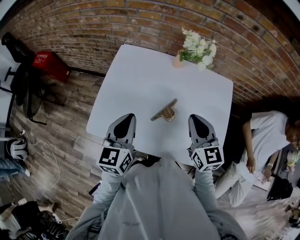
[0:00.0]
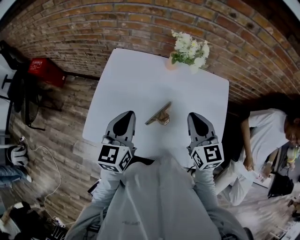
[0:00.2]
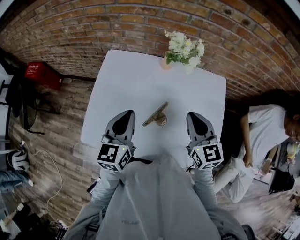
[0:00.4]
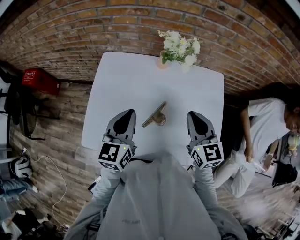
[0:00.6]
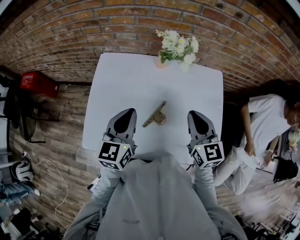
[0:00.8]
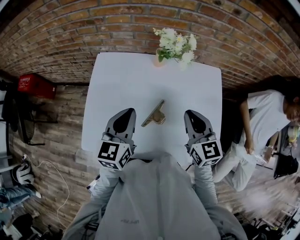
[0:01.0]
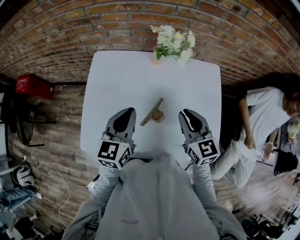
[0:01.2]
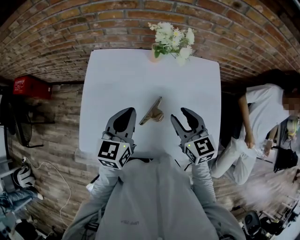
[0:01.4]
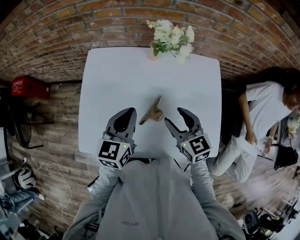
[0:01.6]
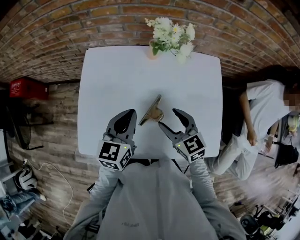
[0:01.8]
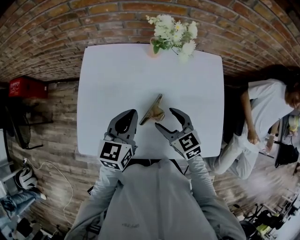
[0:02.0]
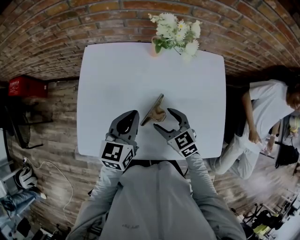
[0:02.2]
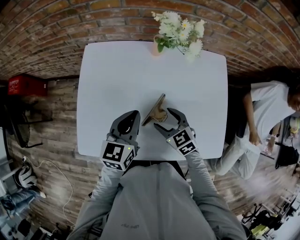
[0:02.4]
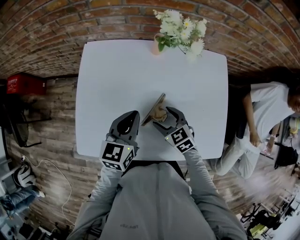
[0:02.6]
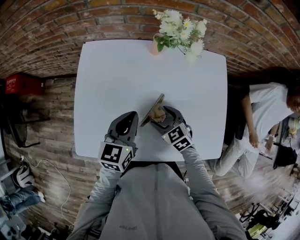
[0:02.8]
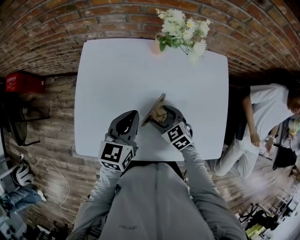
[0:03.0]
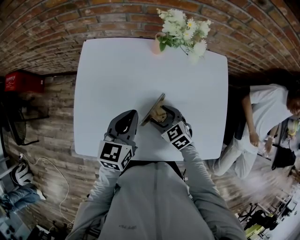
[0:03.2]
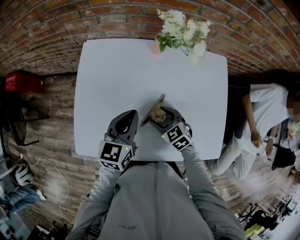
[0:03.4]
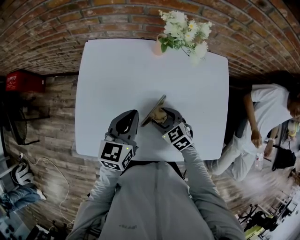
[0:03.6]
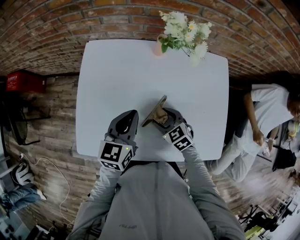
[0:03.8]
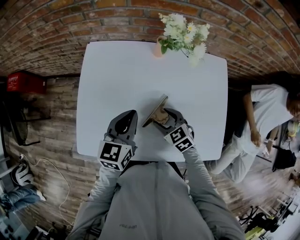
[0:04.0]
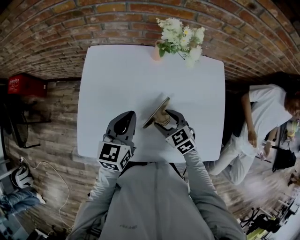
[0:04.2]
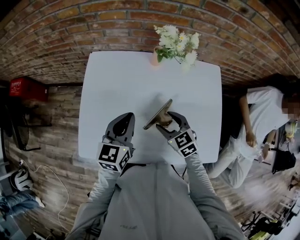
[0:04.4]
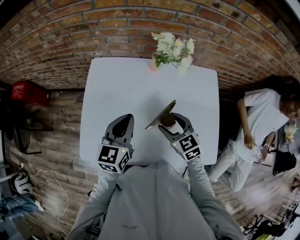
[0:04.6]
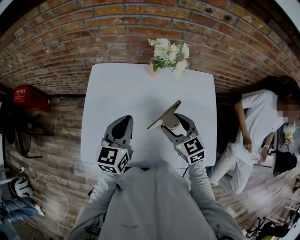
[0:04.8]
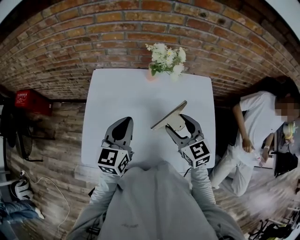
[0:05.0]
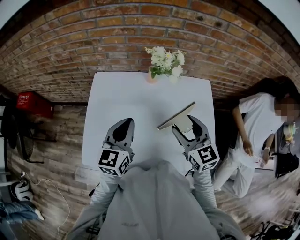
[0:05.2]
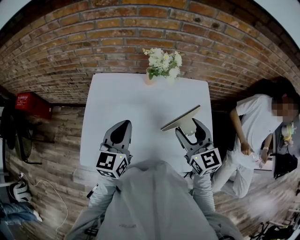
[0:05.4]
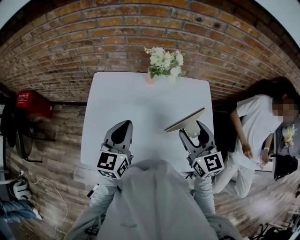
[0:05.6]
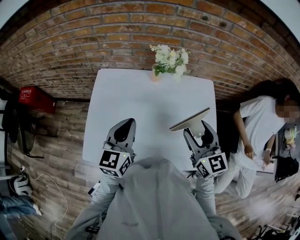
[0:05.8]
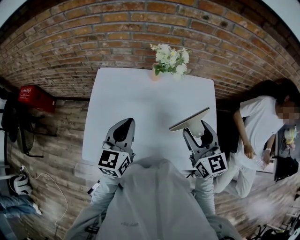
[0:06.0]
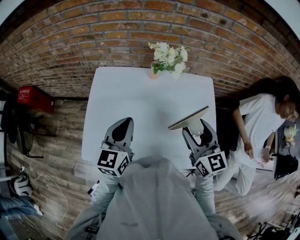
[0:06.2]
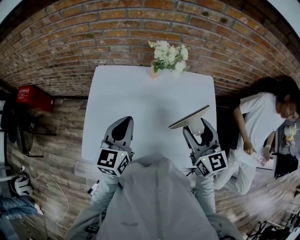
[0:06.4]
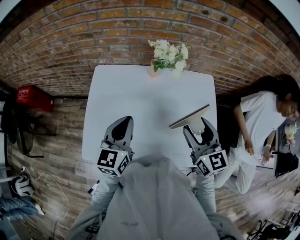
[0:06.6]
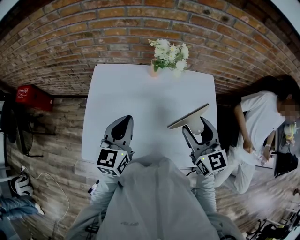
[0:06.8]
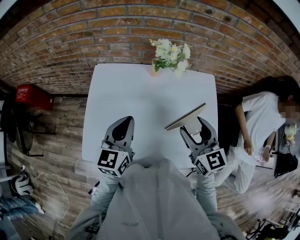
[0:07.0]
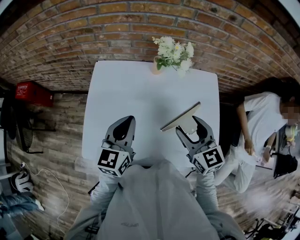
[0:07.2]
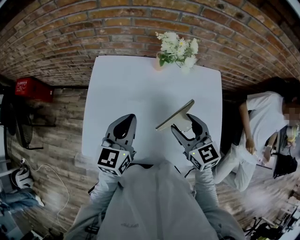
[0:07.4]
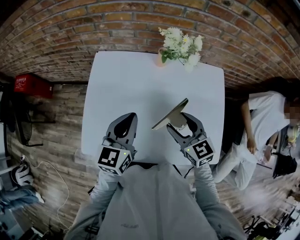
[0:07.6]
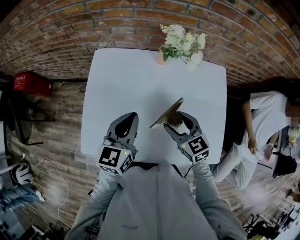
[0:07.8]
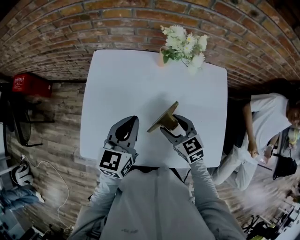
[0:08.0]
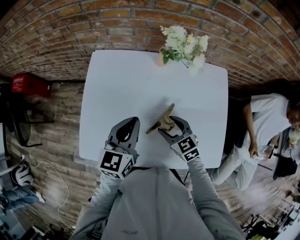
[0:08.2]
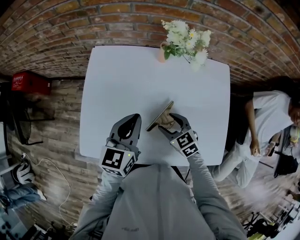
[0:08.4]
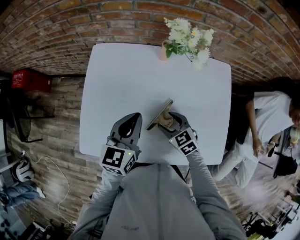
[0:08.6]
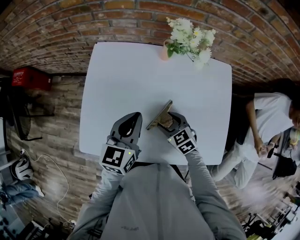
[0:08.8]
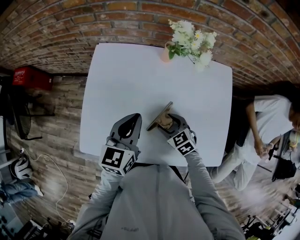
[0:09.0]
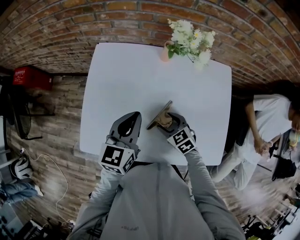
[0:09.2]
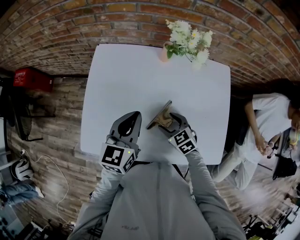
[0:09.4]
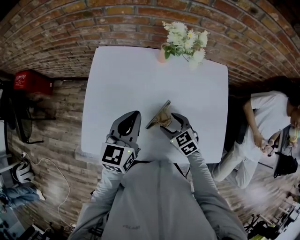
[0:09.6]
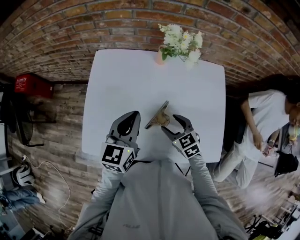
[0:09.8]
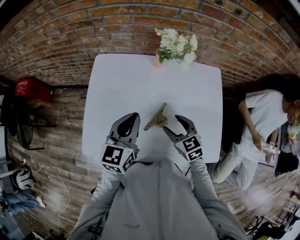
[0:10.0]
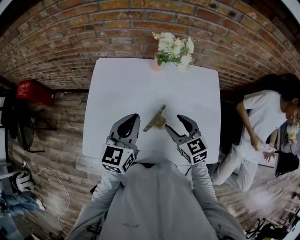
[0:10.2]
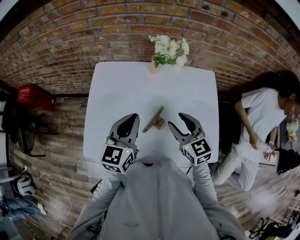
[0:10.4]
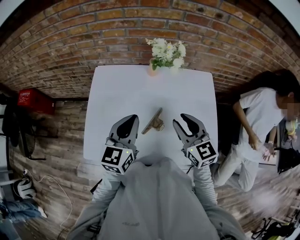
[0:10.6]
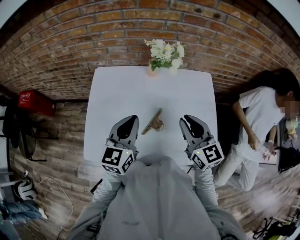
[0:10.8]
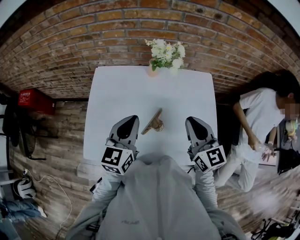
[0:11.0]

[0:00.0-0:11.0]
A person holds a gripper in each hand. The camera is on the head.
0:00.0 to 0:01.6: The right gripper is displaced downward by roughly 5 cm, and opens. The left gripper goes approximately 10 cm forward and to the right.
0:01.6 to 0:03.2: The left gripper goes approximately 5 cm downward; the right gripper is displaced downward by some 15 cm, and changes its angle by some 30 degrees.
0:03.2 to 0:04.8: The left gripper shifts approximately 10 cm upward, while the right gripper heads upward, covering approximately 15 cm, and swivels roughly 20 degrees.
0:04.8 to 0:06.2: The right gripper goes roughly 15 cm upward and to the right, and changes its angle by roughly 20 degrees.
0:06.2 to 0:07.8: The left gripper shifts by about 5 cm. The right gripper goes some 15 cm downward and to the left, and rotates roughly 30 degrees.
0:07.8 to 0:09.4: The right gripper travels downward by about 10 cm.
0:09.4 to 0:11.0: The left gripper goes roughly 5 cm upward, while the right gripper is displaced upward by approximately 25 cm, angles its fingers upward, by roughly 40 degrees, and closes up.

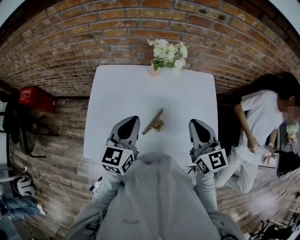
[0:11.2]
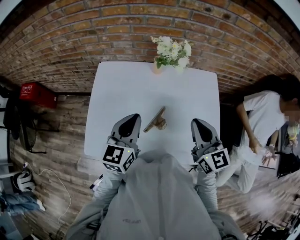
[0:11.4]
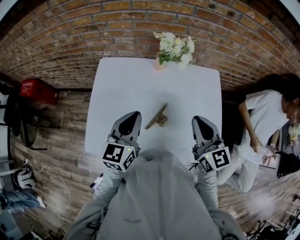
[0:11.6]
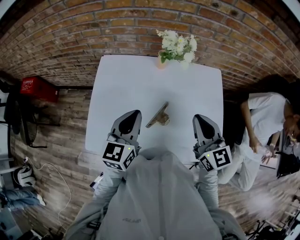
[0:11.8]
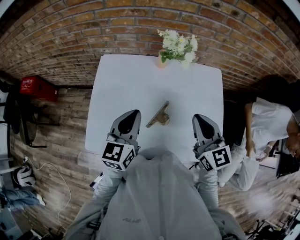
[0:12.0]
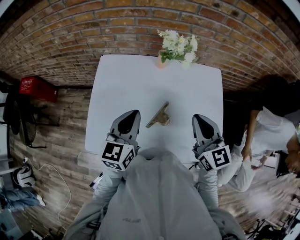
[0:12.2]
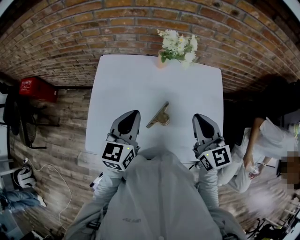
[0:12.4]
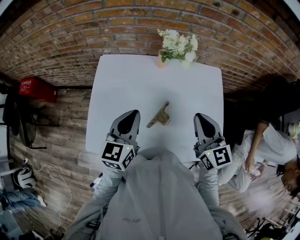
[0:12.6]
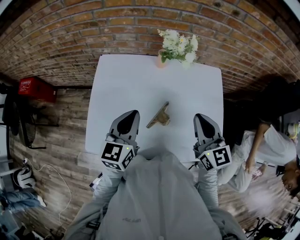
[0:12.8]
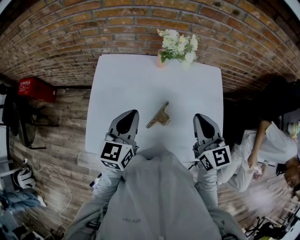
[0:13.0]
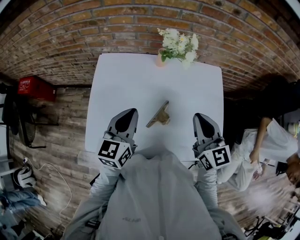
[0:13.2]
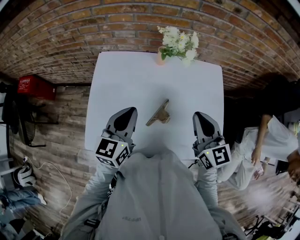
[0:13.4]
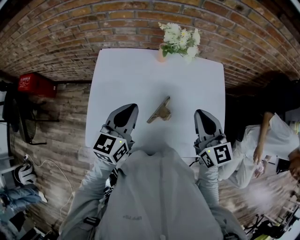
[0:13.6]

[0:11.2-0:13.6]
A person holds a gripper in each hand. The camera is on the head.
0:11.2 to 0:13.6: There are only small adjustments of the grippers.

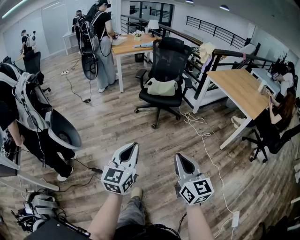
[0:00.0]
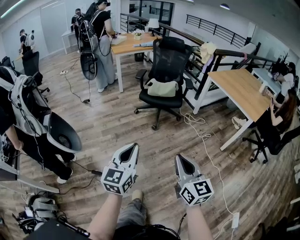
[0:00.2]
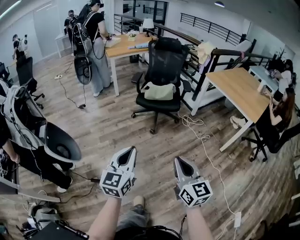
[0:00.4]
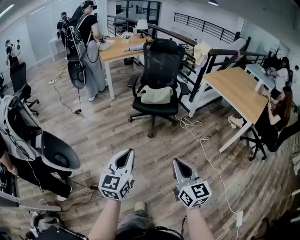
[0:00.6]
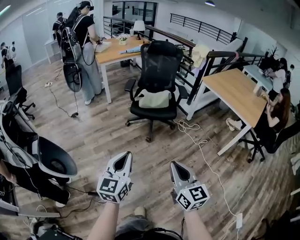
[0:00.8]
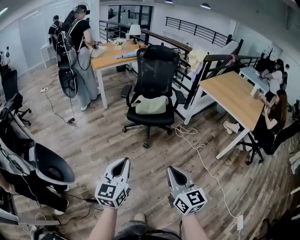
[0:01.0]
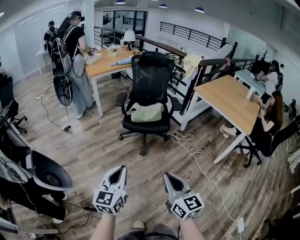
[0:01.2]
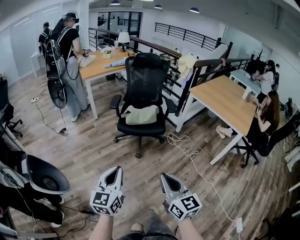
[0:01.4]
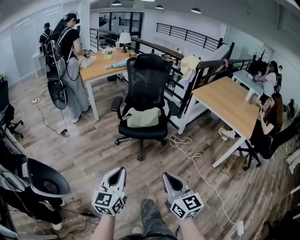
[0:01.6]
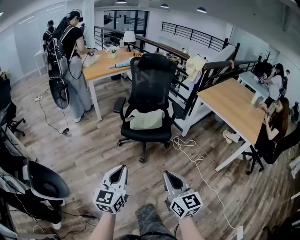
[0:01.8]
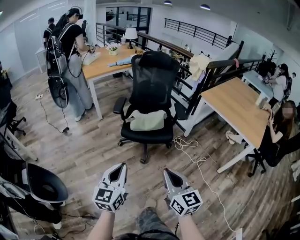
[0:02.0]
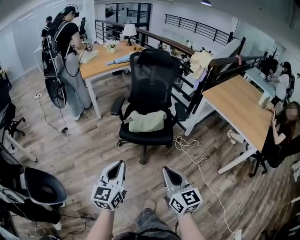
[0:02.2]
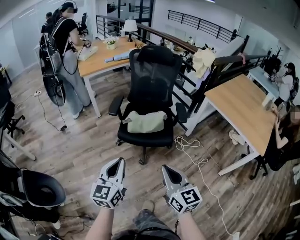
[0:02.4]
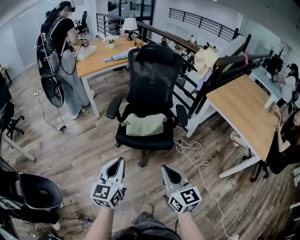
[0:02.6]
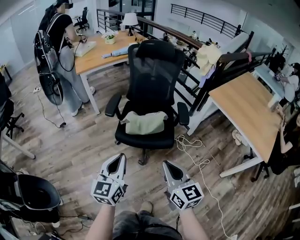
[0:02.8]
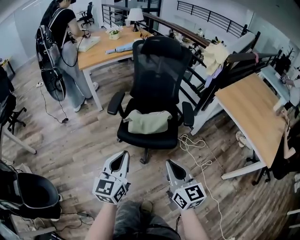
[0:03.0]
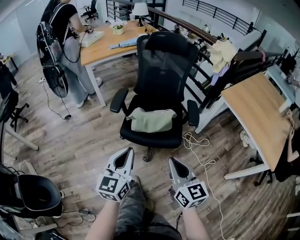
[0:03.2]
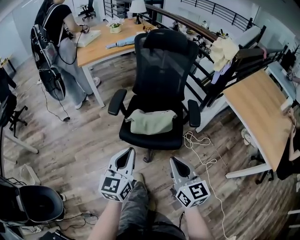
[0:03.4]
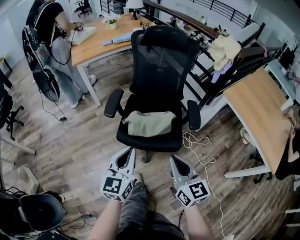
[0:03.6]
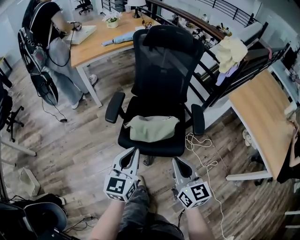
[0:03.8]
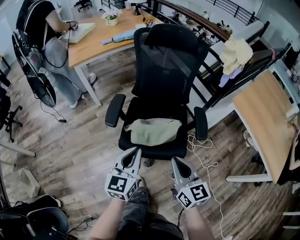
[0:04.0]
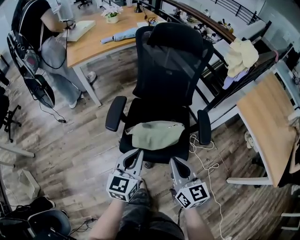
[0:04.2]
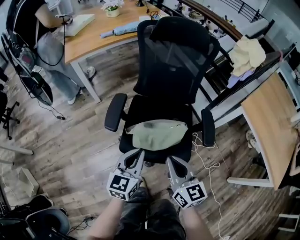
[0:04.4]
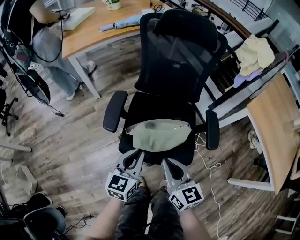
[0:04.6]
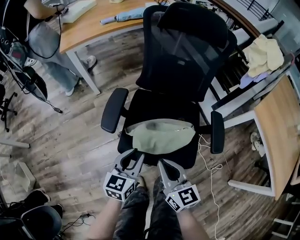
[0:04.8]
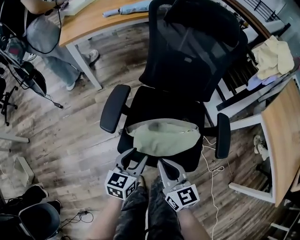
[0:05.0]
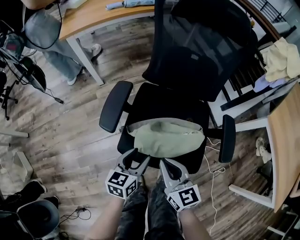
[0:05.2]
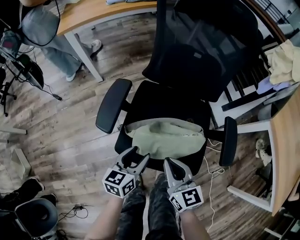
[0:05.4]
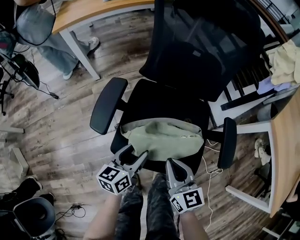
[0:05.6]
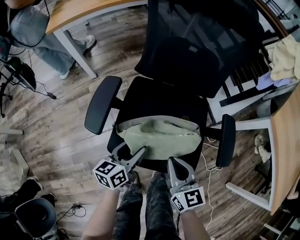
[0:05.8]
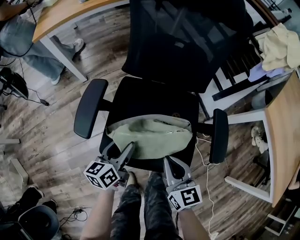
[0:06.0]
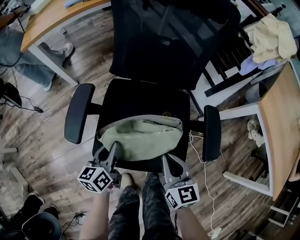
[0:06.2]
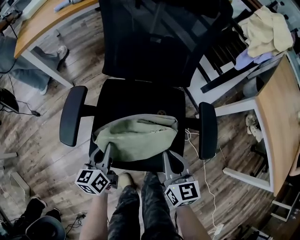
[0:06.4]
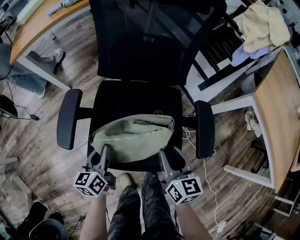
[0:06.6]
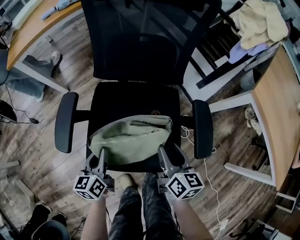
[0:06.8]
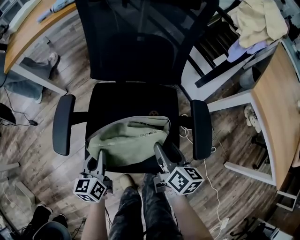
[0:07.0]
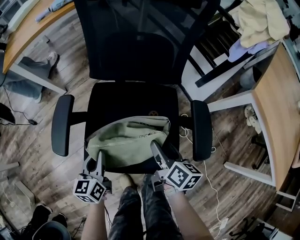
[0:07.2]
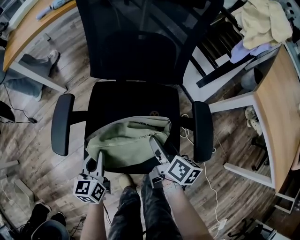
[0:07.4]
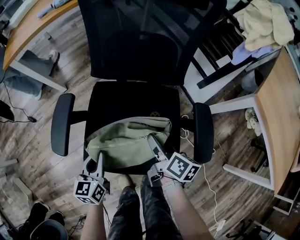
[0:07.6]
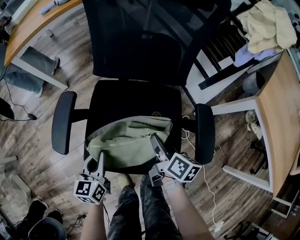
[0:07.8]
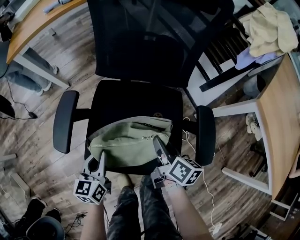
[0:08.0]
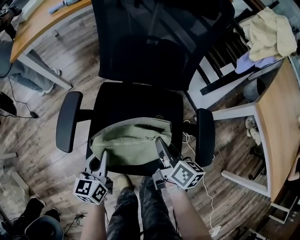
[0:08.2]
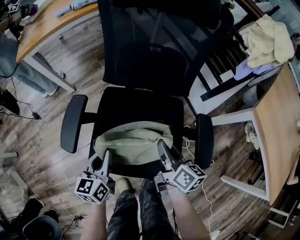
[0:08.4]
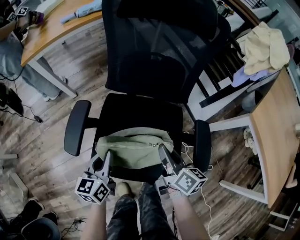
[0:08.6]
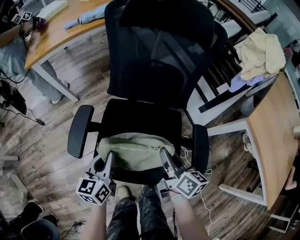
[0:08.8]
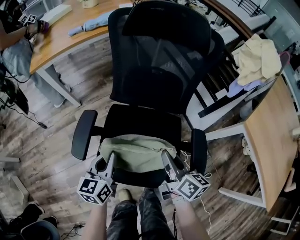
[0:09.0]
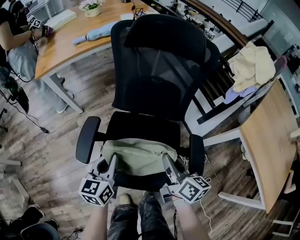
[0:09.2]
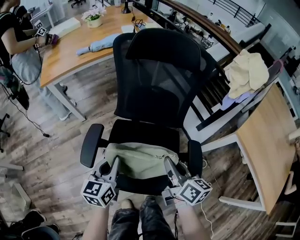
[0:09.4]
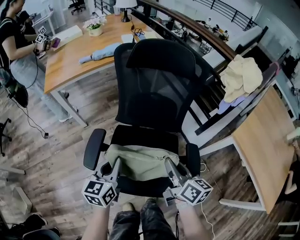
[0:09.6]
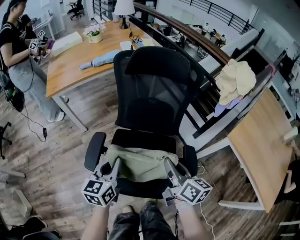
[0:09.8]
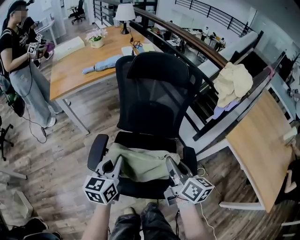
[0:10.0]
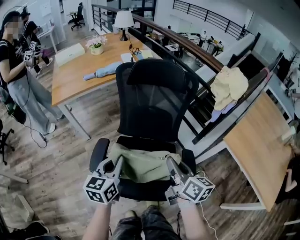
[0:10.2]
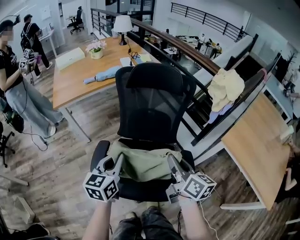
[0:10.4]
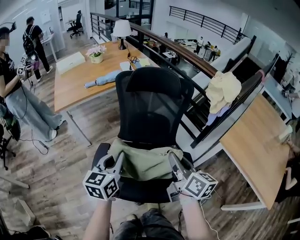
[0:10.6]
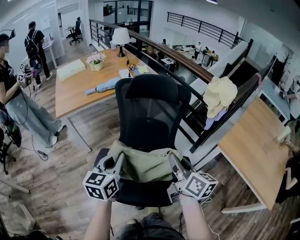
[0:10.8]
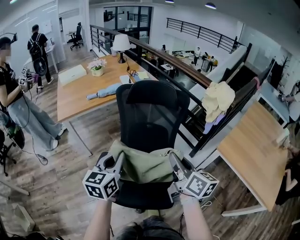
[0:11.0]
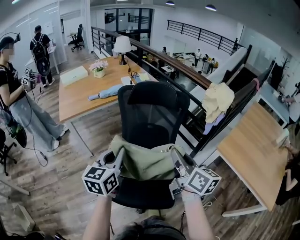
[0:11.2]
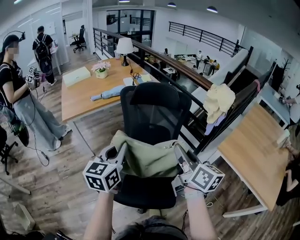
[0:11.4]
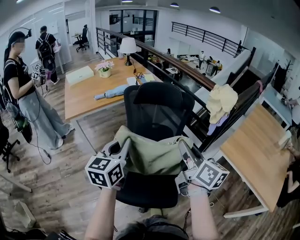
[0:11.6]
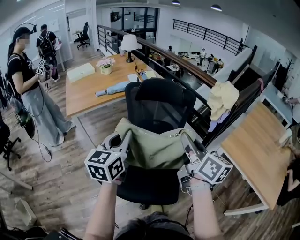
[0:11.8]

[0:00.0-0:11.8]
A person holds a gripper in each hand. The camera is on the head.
0:00.0 to 0:01.4: The two grippers go roughly 25 cm forward.
0:01.4 to 0:03.0: Both grippers move forward, about 35 cm.
0:03.0 to 0:04.4: The right gripper is displaced forward by some 25 cm. Meanwhile the left gripper is displaced forward and downward by about 25 cm.
0:04.4 to 0:06.0: Both grippers travel together downward and forward, some 20 cm. The left gripper turns by some 30 degrees, and opens.
0:06.0 to 0:07.4: The right gripper moves forward, to the right and downward, approximately 15 cm, rotates around the line of its fingers by some 50 degrees, clockwise from behind, and opens; the left gripper turns by approximately 20 degrees, and closes its fingers.
0:07.4 to 0:08.8: Both grippers move upward, roughly 10 cm. The right gripper closes its fingers.
0:08.8 to 0:10.4: Both grippers move upward, about 25 cm.
0:10.4 to 0:11.8: Both grippers travel together upward, approximately 15 cm.
